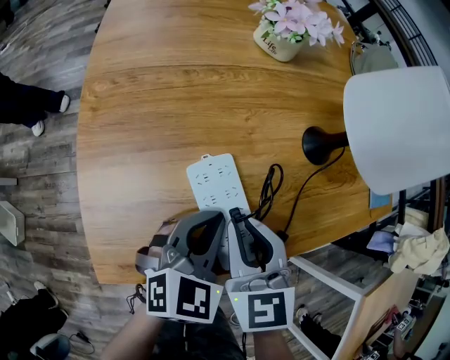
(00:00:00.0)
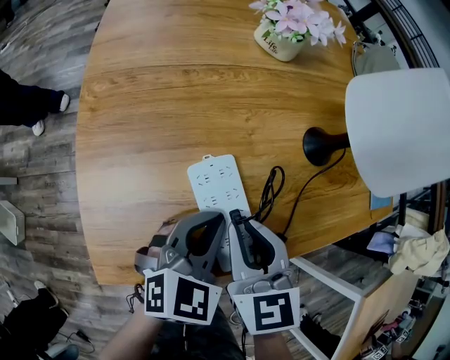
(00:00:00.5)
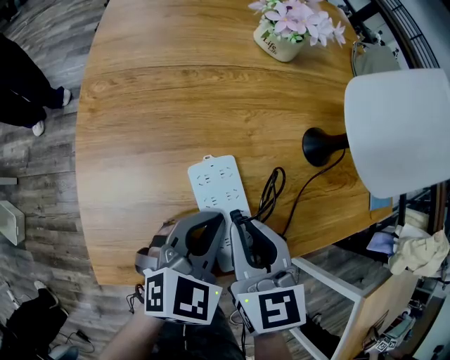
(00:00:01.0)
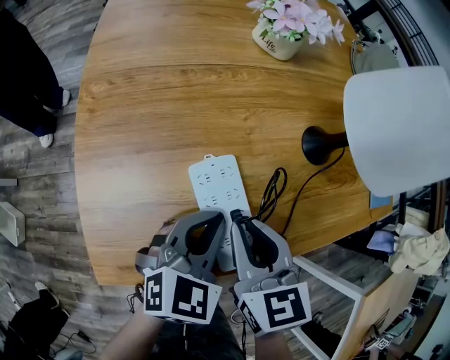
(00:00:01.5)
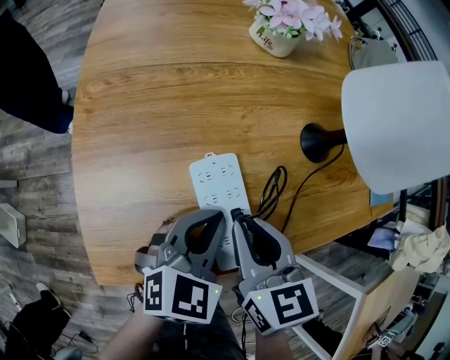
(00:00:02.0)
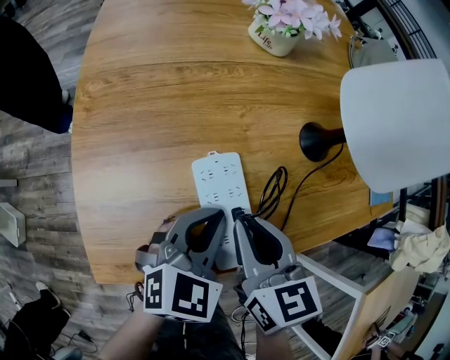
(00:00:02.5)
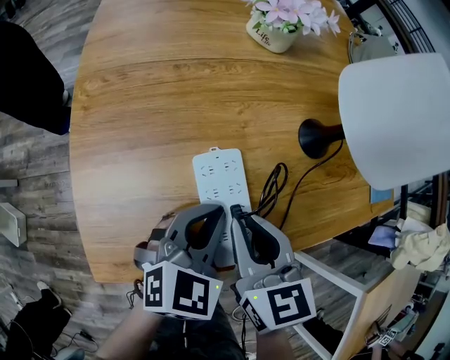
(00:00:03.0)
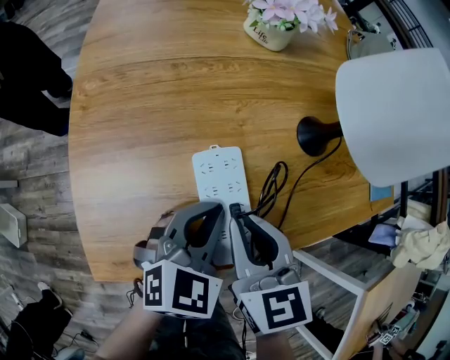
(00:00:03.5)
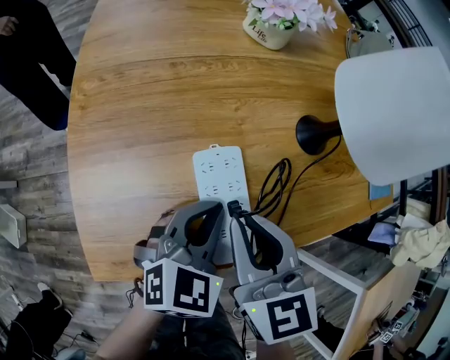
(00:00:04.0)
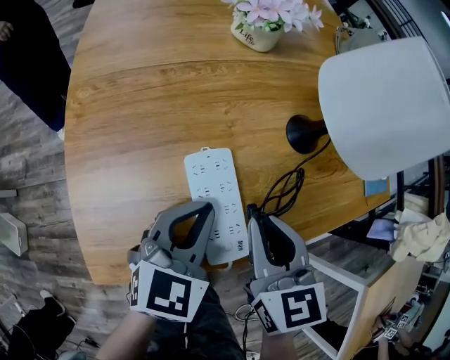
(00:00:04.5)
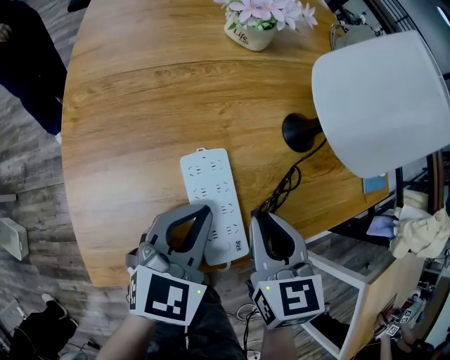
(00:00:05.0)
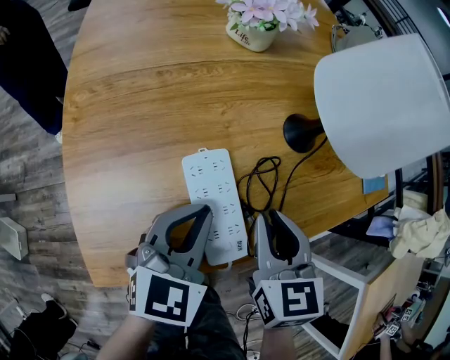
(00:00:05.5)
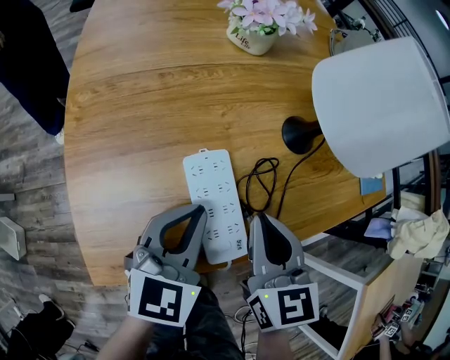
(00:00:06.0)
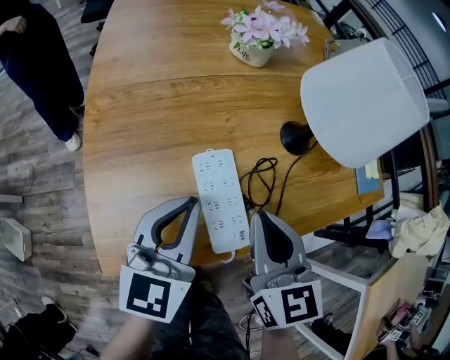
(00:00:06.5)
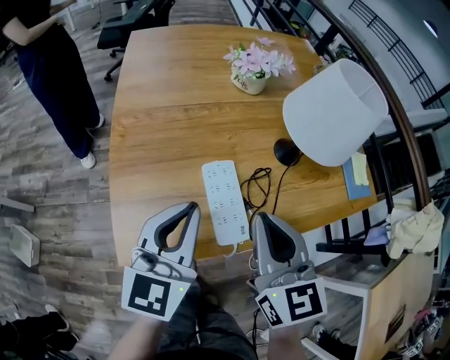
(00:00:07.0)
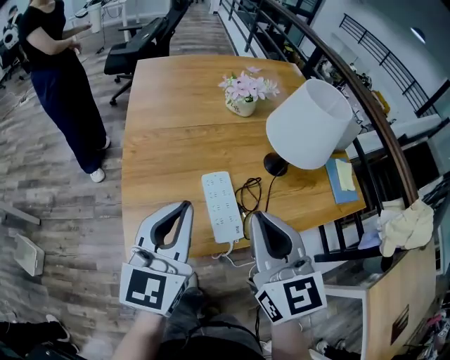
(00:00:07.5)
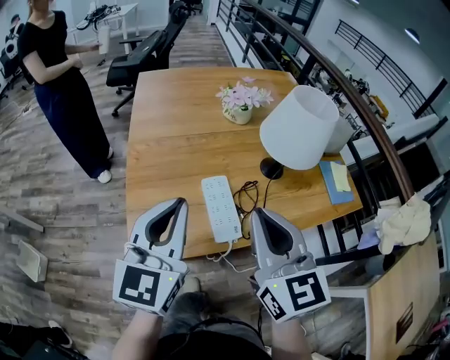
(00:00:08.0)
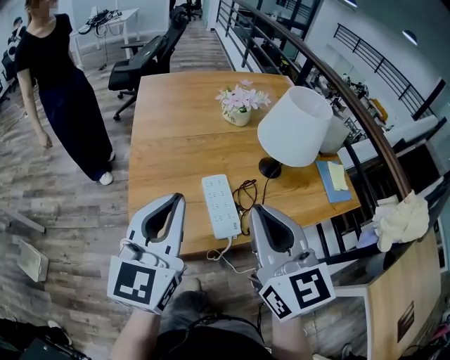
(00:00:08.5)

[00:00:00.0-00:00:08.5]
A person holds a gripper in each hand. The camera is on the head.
00:00:00.0 to 00:00:04.0: The grippers move only a little.
00:00:04.0 to 00:00:06.5: The right gripper ends up some 5 cm from where it was. Meanwhile the left gripper moves upward and to the left, roughly 10 cm, and changes its angle by approximately 30 degrees.
00:00:06.5 to 00:00:08.5: The grippers both shift upward and backward by about 20 cm.

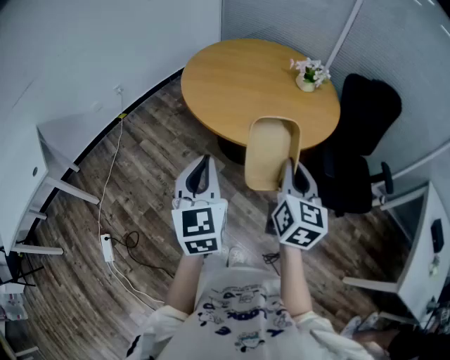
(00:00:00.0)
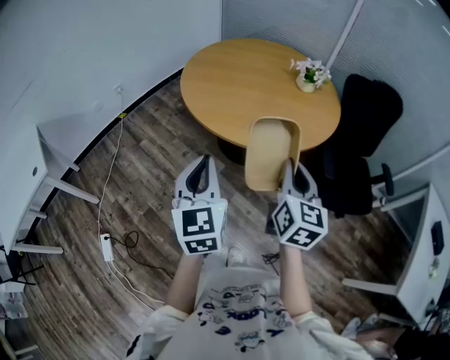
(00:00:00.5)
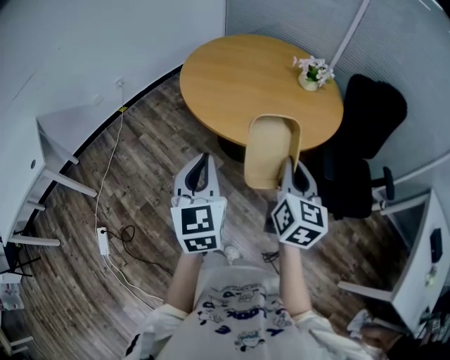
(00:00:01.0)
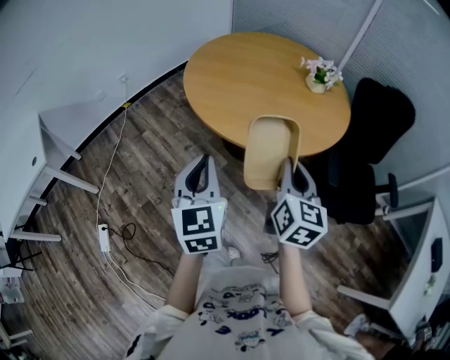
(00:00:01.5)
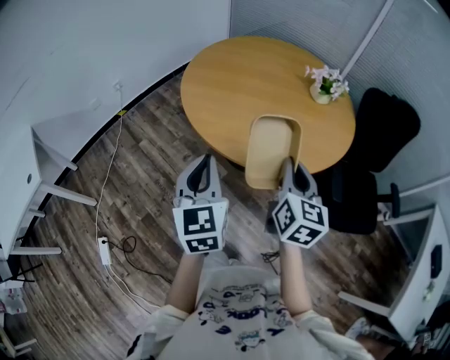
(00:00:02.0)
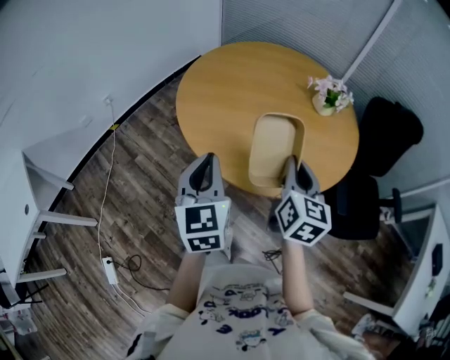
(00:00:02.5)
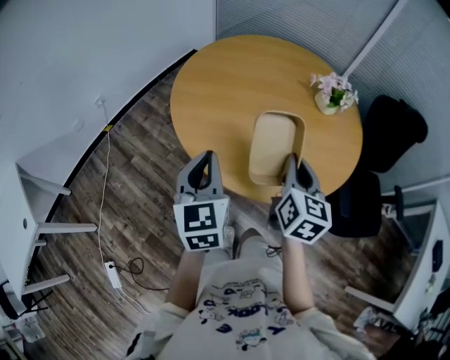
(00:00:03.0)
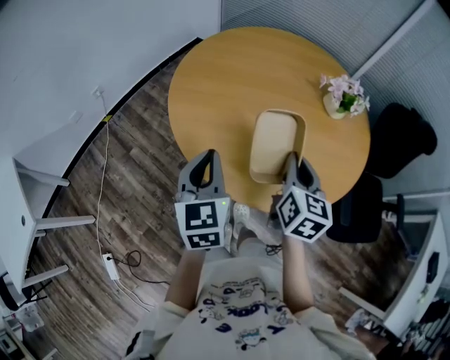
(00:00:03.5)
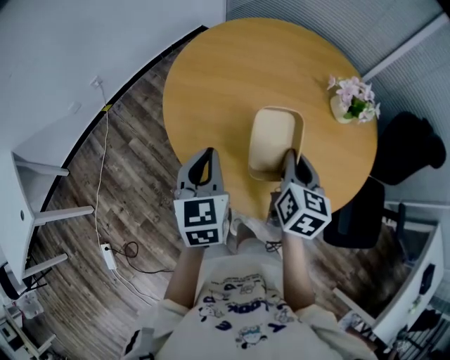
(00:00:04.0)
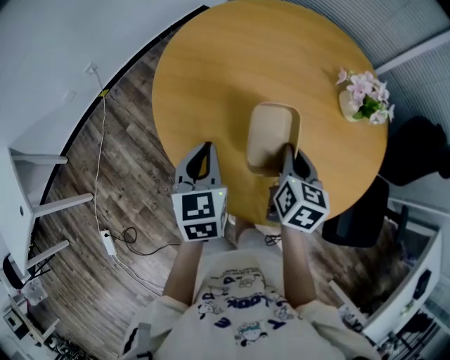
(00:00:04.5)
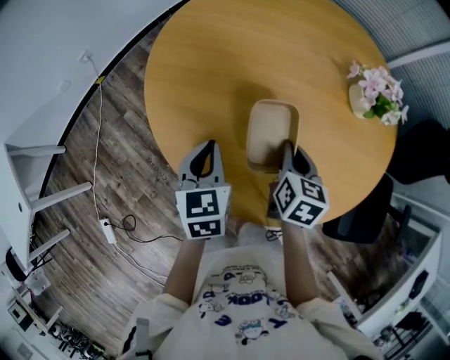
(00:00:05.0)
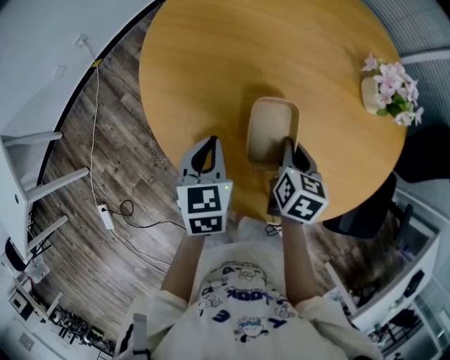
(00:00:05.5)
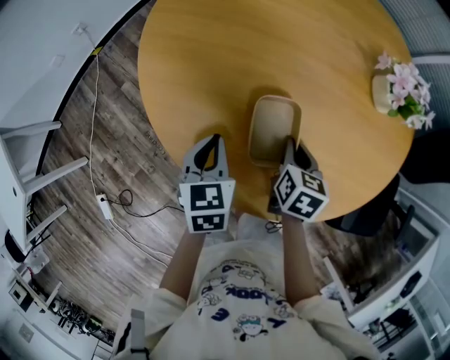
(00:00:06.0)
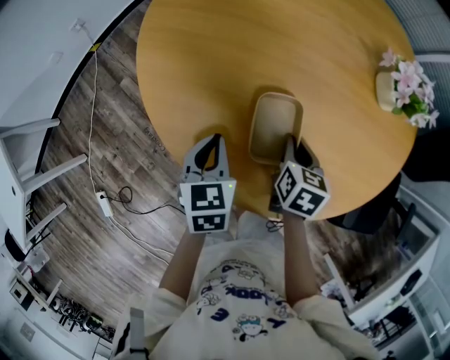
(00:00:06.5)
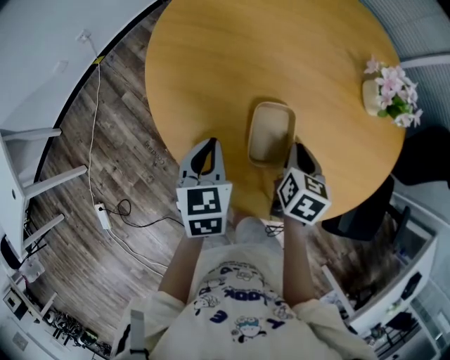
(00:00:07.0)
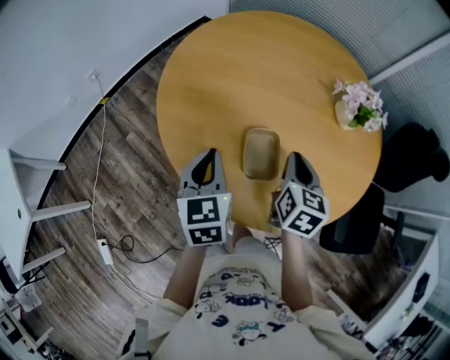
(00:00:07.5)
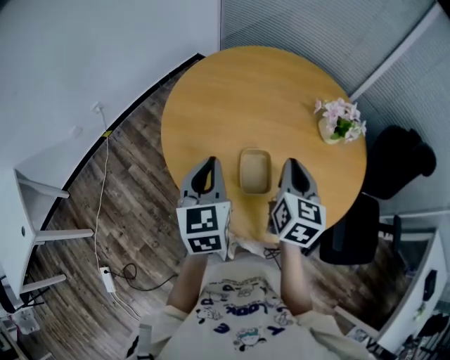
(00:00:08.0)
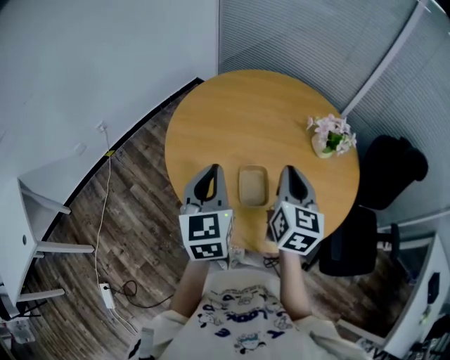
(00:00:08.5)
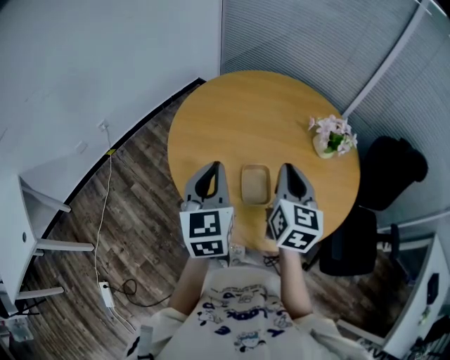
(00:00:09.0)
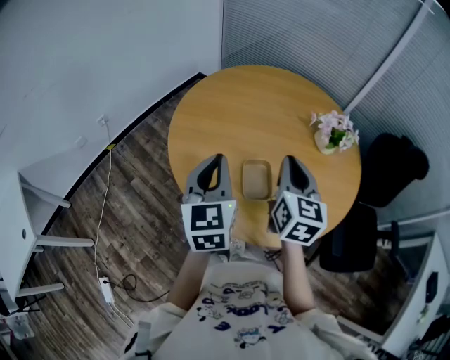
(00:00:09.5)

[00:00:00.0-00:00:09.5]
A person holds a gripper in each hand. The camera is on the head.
00:00:00.0 to 00:00:02.0: The grippers both shift forward by some 15 cm.
00:00:02.0 to 00:00:04.0: The grippers both shift forward by some 25 cm.
00:00:04.0 to 00:00:05.5: The grippers both shift downward by some 15 cm. The right gripper swivels about 20 degrees.
00:00:05.5 to 00:00:07.5: Both grippers move upward, roughly 10 cm.
00:00:07.5 to 00:00:09.5: Both grippers move upward, approximately 15 cm.

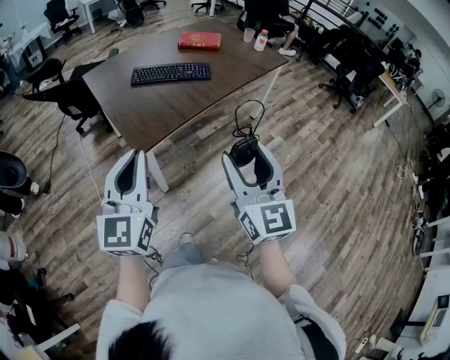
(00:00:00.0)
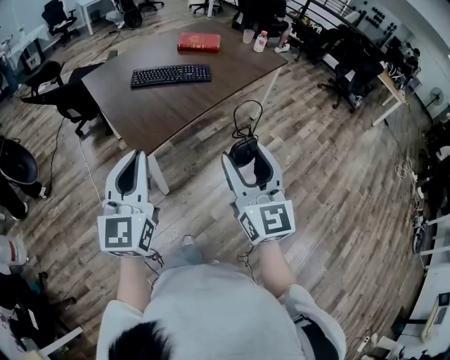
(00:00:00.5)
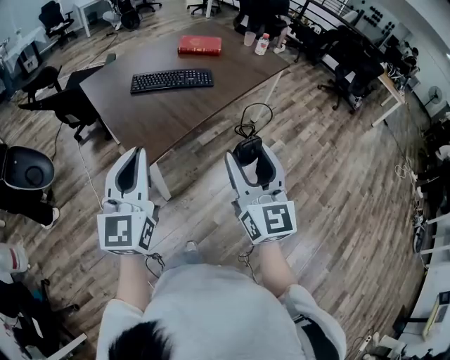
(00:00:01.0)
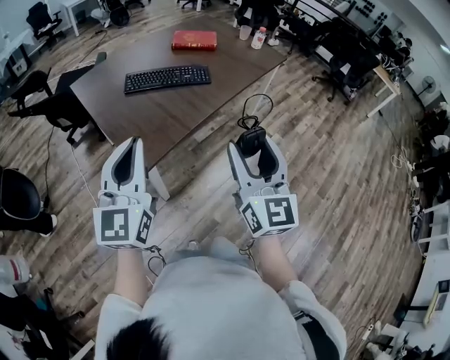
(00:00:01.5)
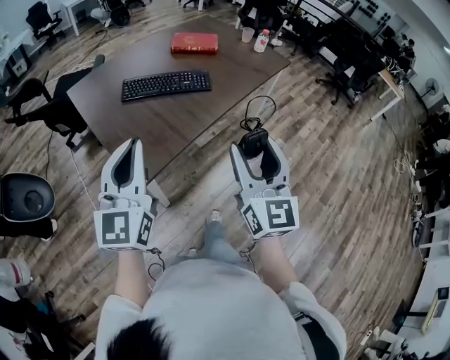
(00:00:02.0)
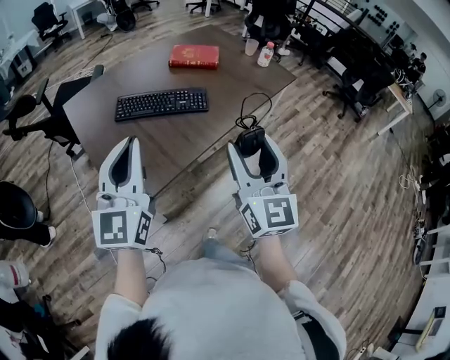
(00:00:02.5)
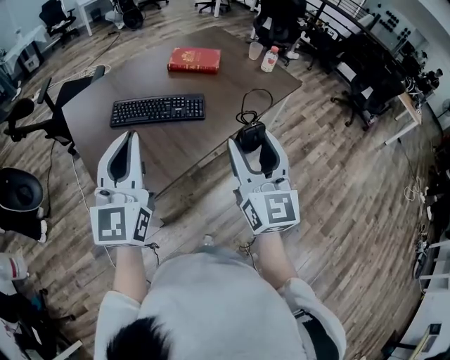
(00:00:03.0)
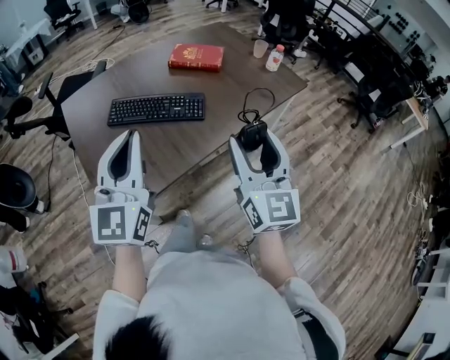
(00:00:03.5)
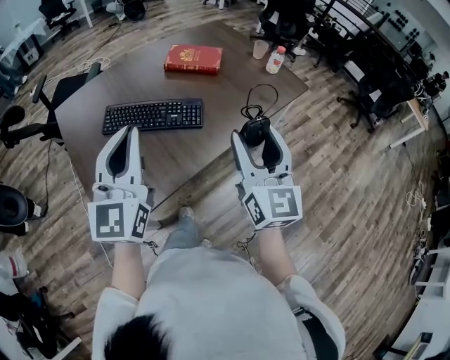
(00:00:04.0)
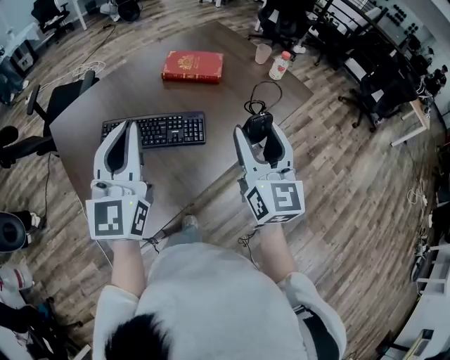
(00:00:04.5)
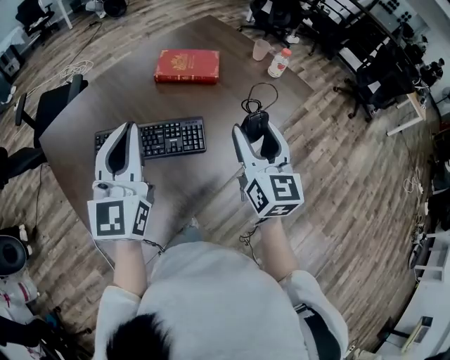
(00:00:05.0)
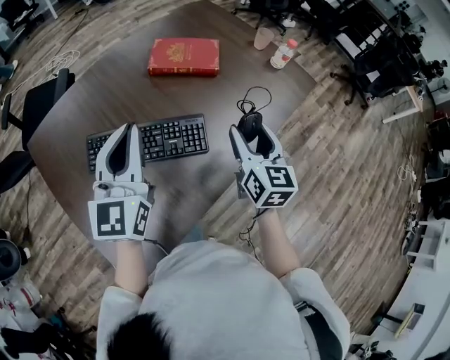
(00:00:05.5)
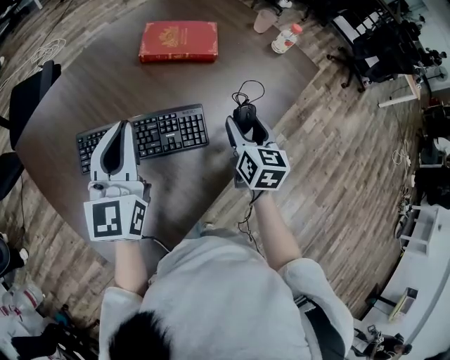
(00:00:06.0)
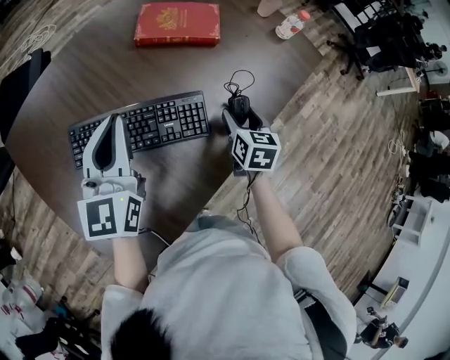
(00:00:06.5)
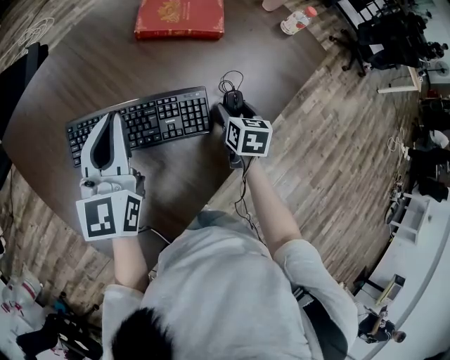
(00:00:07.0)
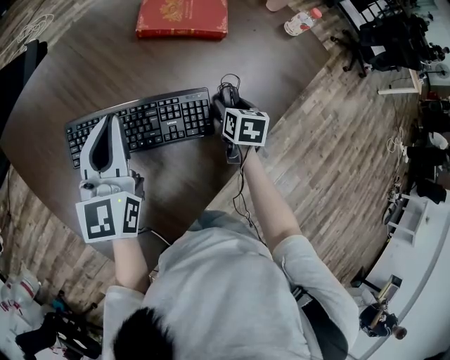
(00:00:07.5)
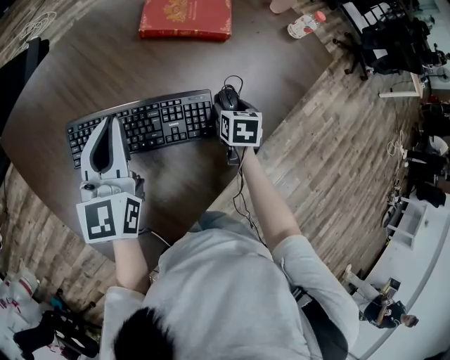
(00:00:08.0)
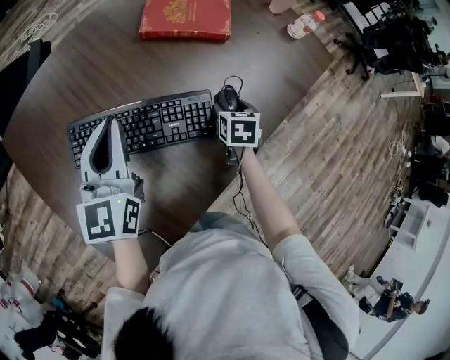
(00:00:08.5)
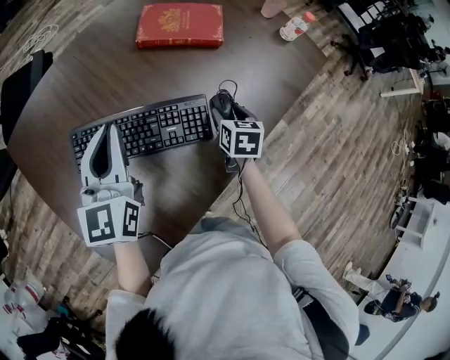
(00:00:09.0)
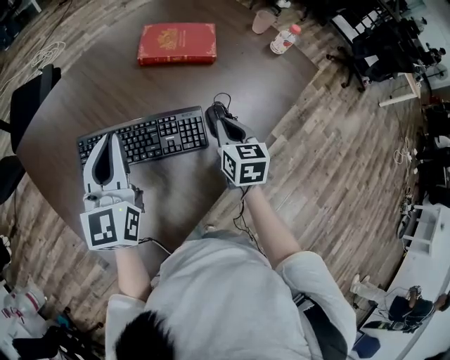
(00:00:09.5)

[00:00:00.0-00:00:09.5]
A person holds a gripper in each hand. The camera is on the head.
00:00:00.0 to 00:00:02.0: Both grippers move forward, some 15 cm.
00:00:02.0 to 00:00:04.0: The two grippers go approximately 30 cm forward and to the right.
00:00:04.0 to 00:00:05.5: The left gripper heads forward, covering roughly 25 cm. The right gripper is displaced forward and downward by about 25 cm, and swivels about 20 degrees.
00:00:05.5 to 00:00:07.5: The right gripper goes roughly 20 cm downward, and angles its fingers downward, by approximately 40 degrees. Meanwhile the left gripper goes approximately 15 cm downward, forward and to the left.
00:00:07.5 to 00:00:09.5: The right gripper travels upward by roughly 10 cm, rotates some 20 degrees, and closes up. The left gripper changes place by roughly 5 cm.
